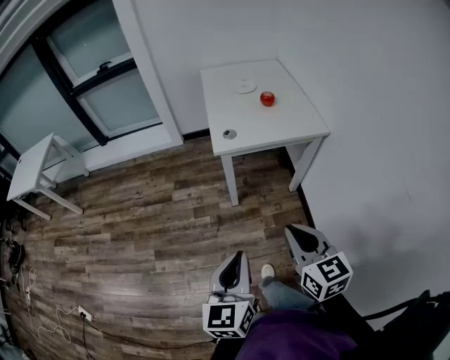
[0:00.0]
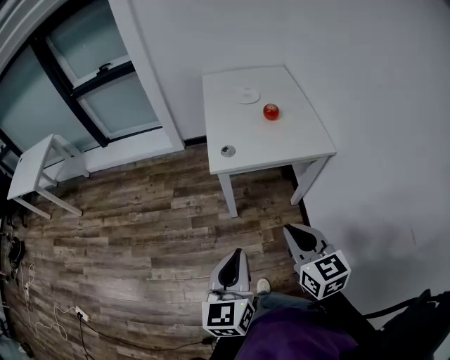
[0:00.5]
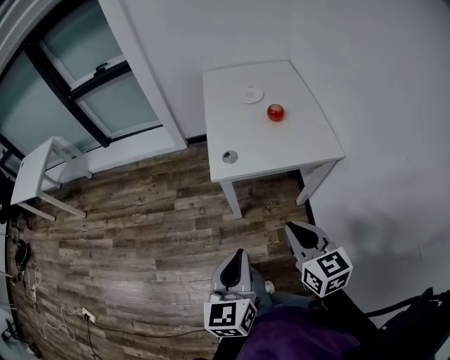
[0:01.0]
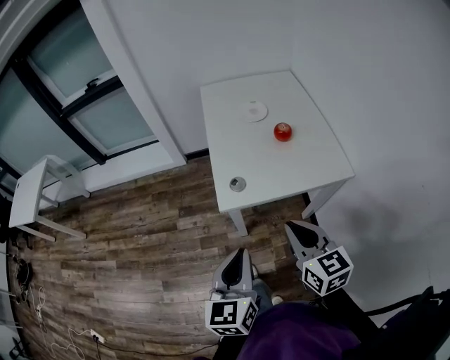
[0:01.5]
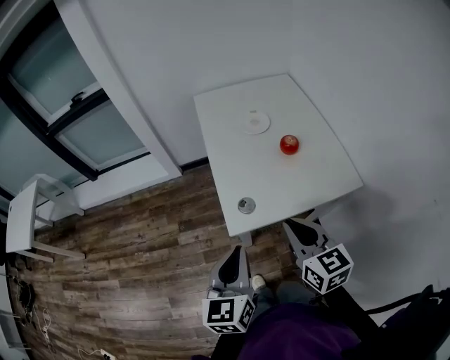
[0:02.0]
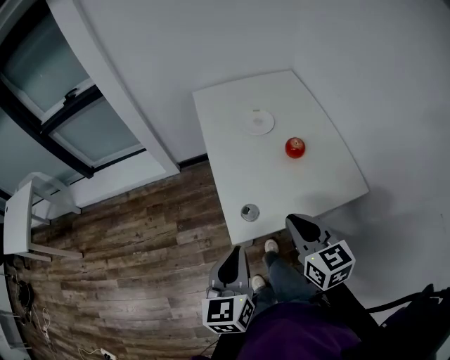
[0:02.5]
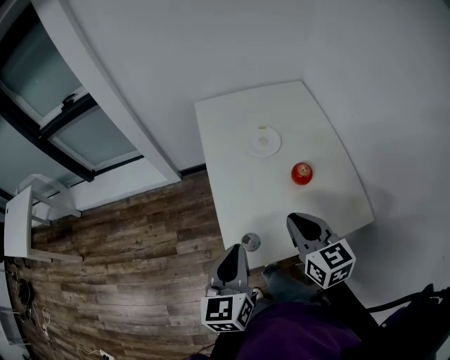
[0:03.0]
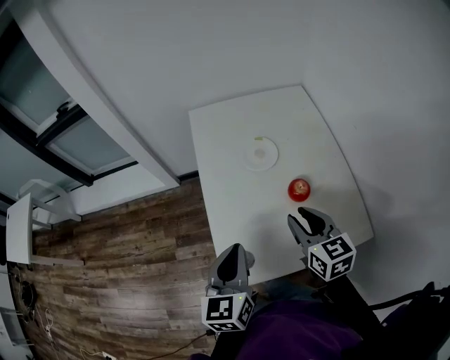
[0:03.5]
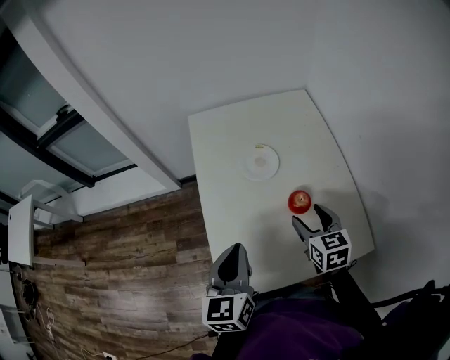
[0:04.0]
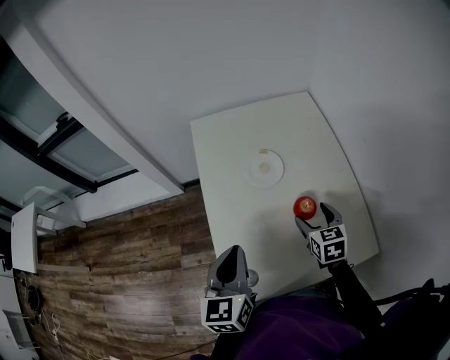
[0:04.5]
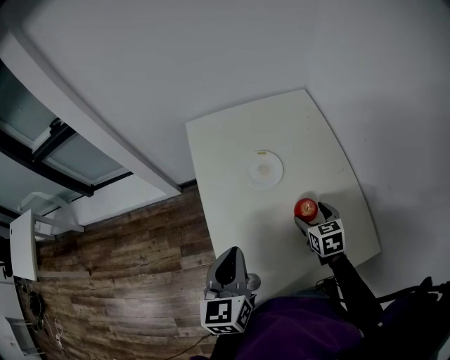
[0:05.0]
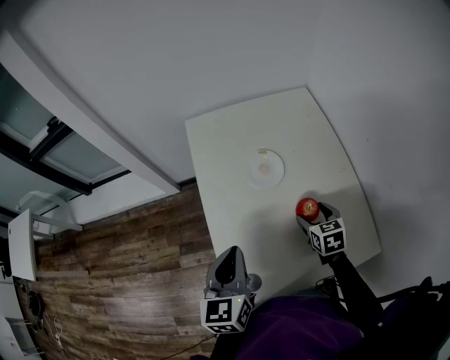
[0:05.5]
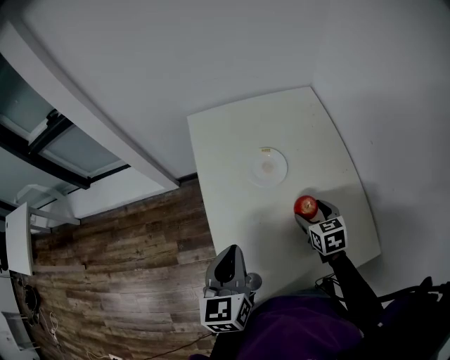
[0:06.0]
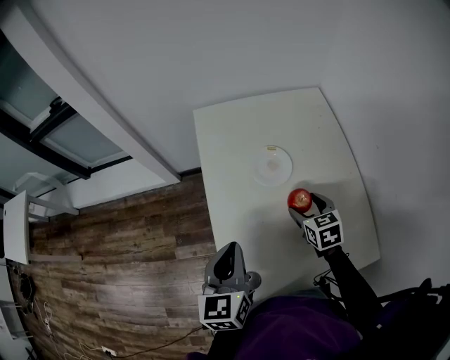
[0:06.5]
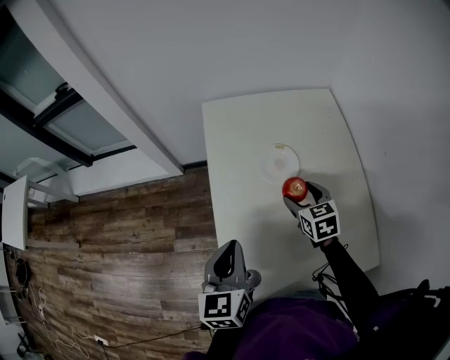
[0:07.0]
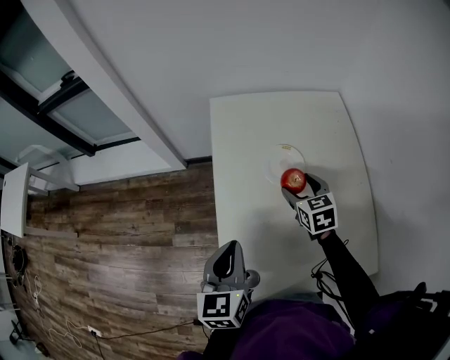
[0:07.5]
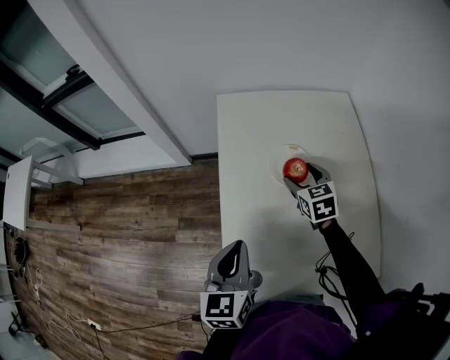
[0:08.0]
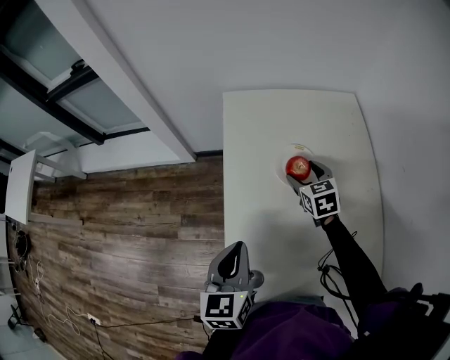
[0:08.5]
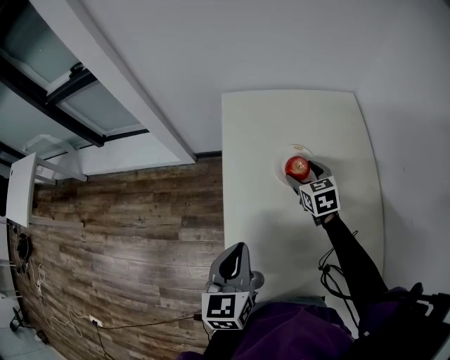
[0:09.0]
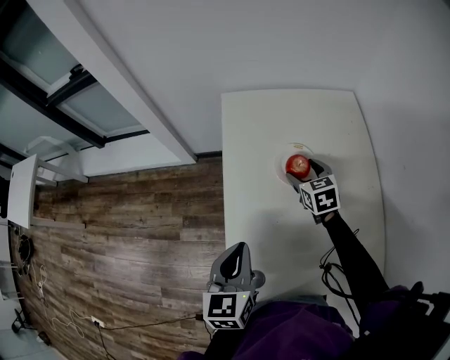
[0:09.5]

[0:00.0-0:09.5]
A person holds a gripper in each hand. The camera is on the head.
0:00.0 to 0:02.0: Both grippers travel together forward, roughly 40 cm.
0:02.0 to 0:04.0: The right gripper is displaced forward and to the right by roughly 30 cm, and opens up; the left gripper is displaced forward by some 25 cm.
0:04.0 to 0:05.5: The right gripper shifts roughly 10 cm downward; the left gripper ends up about 5 cm from where it was.
0:05.5 to 0:07.5: The right gripper moves forward and to the left, approximately 15 cm.
0:07.5 to 0:09.5: The right gripper goes approximately 5 cm forward.

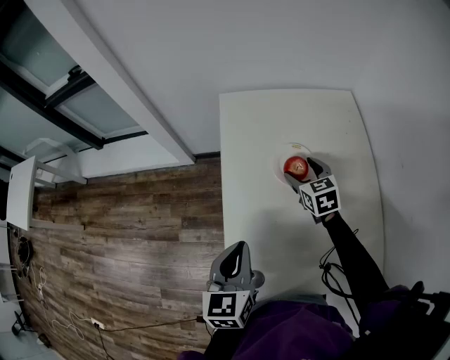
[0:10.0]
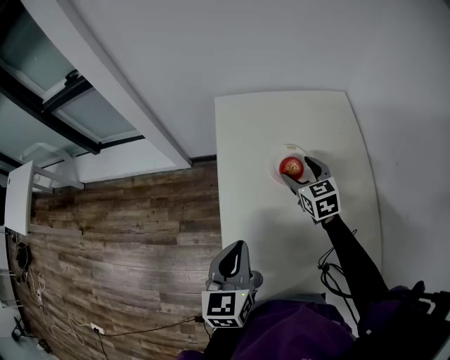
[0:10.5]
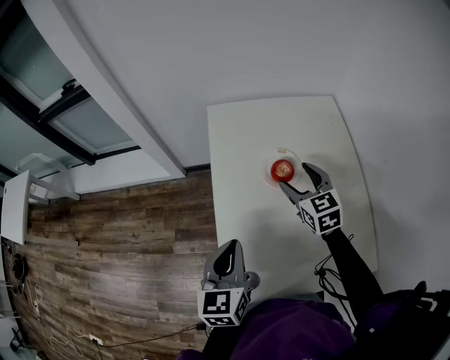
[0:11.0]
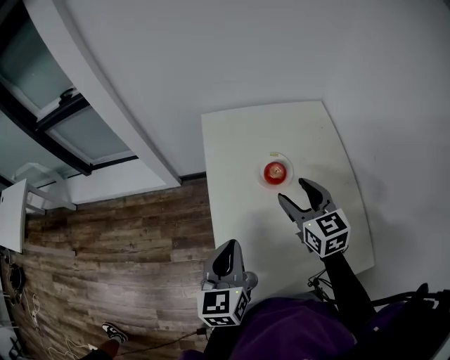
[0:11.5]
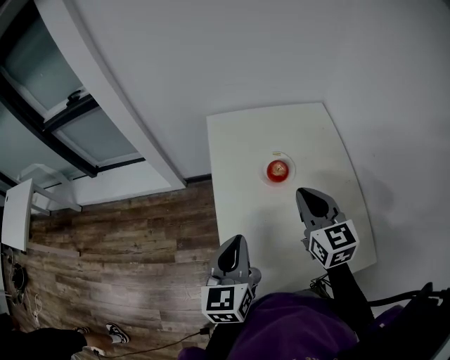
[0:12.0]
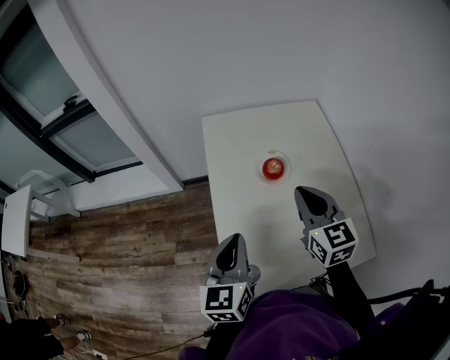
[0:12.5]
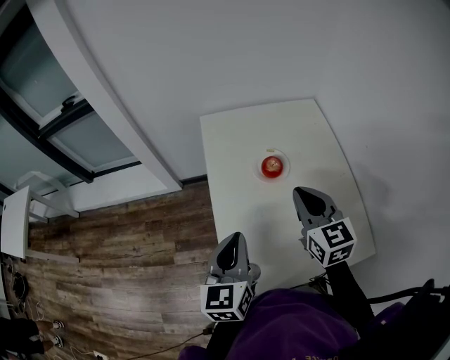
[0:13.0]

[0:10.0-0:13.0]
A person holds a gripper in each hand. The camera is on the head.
0:10.0 to 0:11.5: The right gripper heads upward and backward, covering about 20 cm.
0:11.5 to 0:13.0: The right gripper heads backward, covering some 5 cm, and closes its fingers.

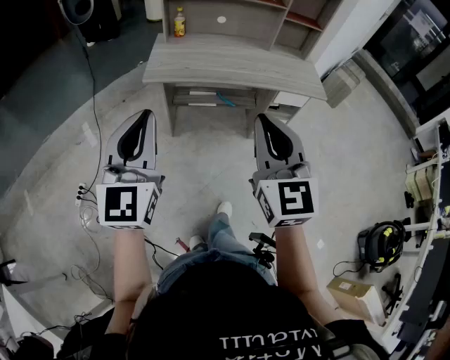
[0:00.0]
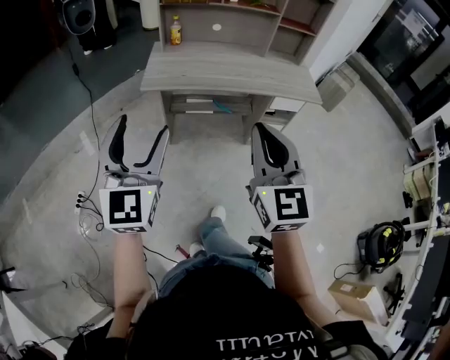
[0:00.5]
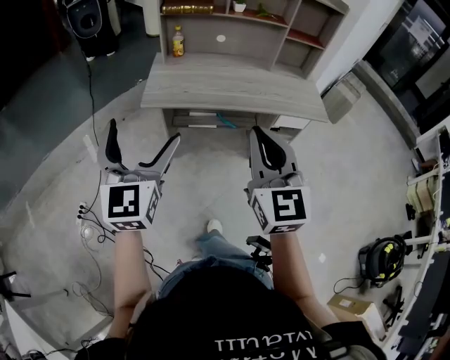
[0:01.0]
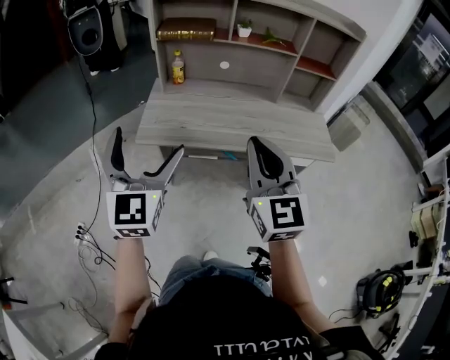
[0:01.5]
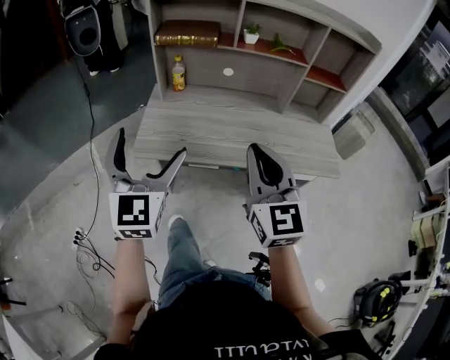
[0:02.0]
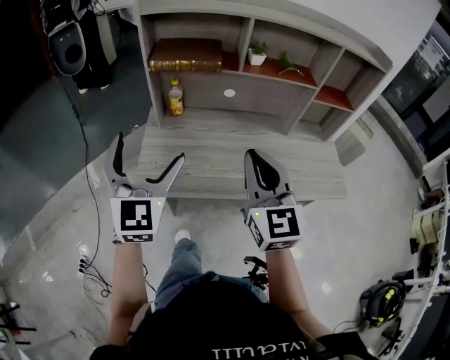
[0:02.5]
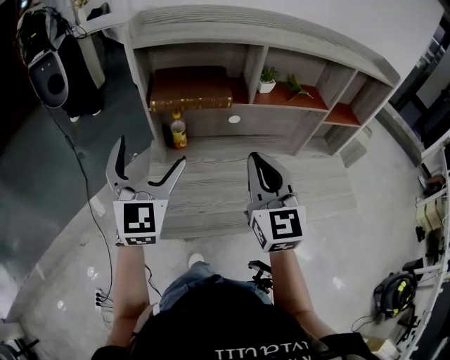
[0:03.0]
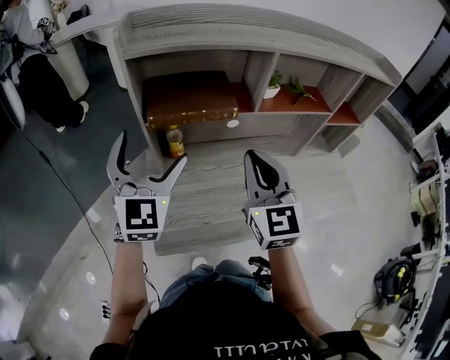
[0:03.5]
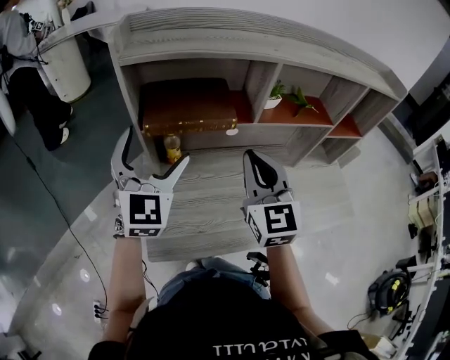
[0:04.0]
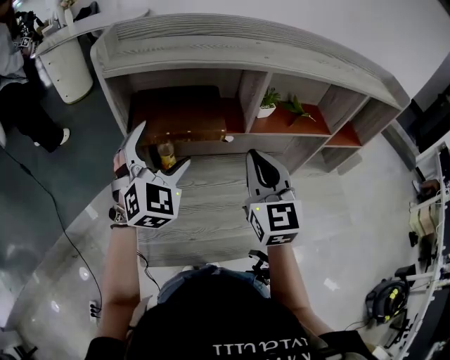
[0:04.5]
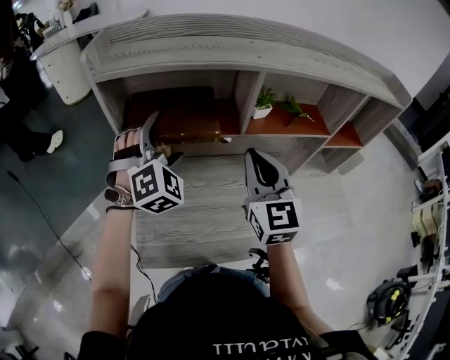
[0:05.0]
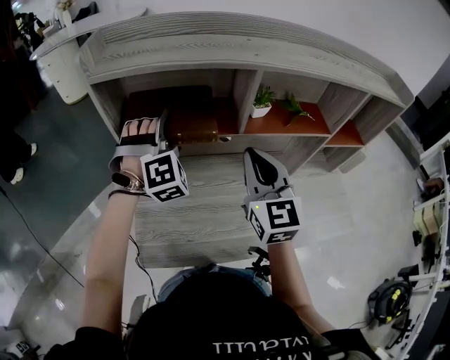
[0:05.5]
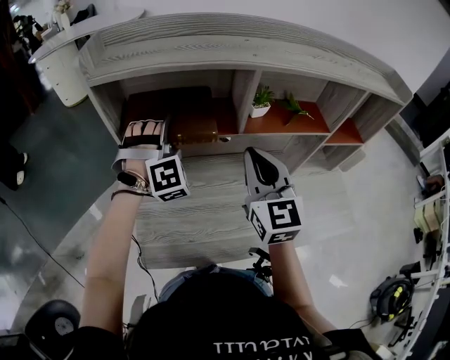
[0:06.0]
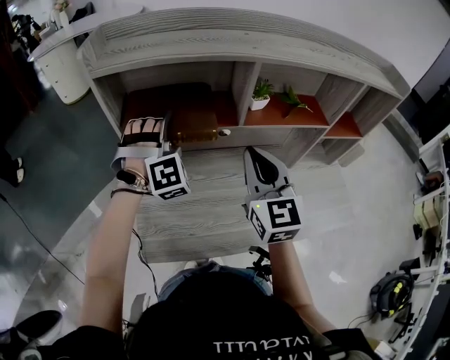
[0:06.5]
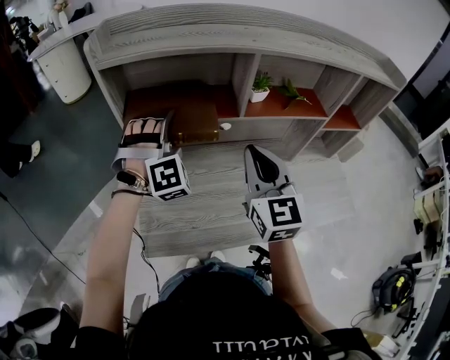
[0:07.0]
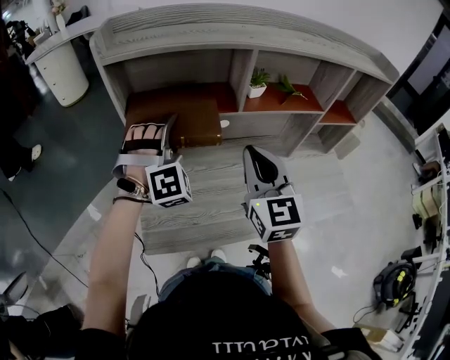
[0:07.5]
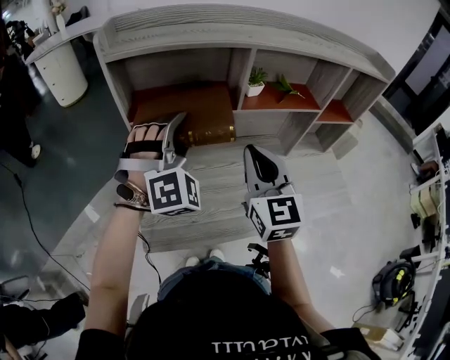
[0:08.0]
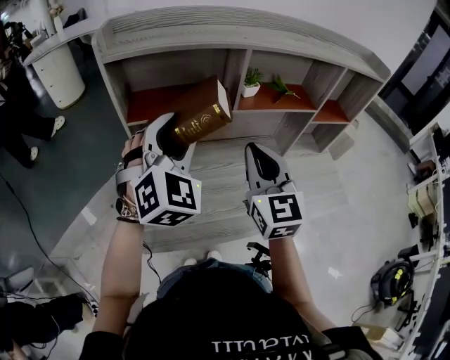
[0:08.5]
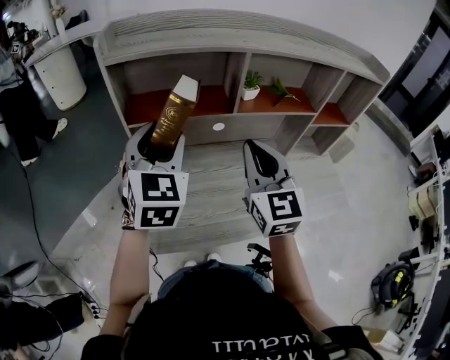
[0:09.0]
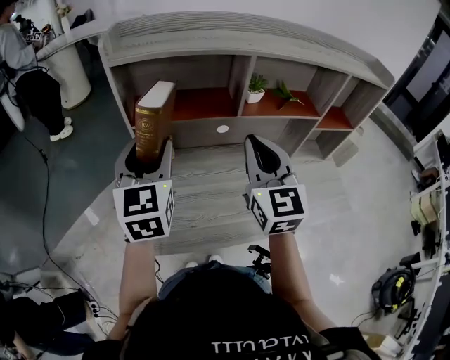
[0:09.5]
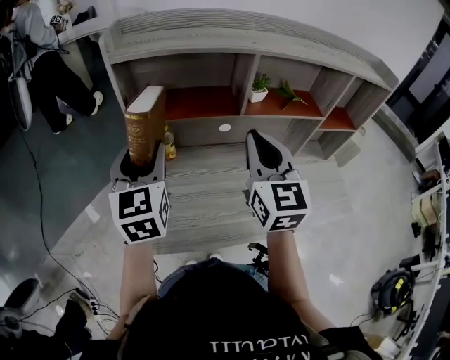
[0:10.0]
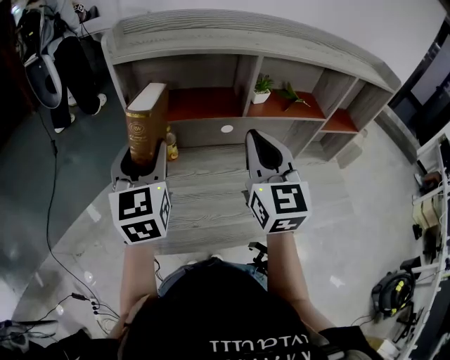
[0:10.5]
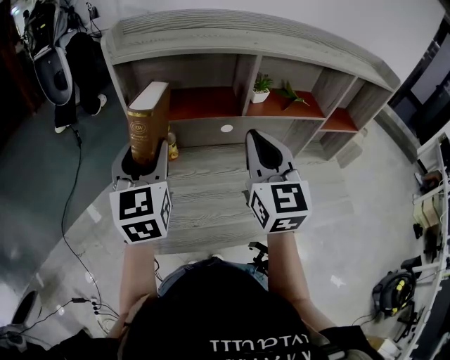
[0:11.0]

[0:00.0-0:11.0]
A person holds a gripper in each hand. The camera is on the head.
0:00.0 to 0:02.0: Both grippers move forward, about 35 cm. The left gripper opens.
0:02.0 to 0:03.5: The two grippers go roughly 35 cm forward.
0:03.5 to 0:05.5: The right gripper is displaced forward and to the right by some 10 cm. Meanwhile the left gripper moves forward, to the right and downward, roughly 20 cm, and rotates around the line of its fingers by some 50 degrees, clockwise from behind.
0:05.5 to 0:07.5: Both grippers move backward, some 5 cm. The left gripper closes its fingers.
0:07.5 to 0:09.0: The left gripper travels upward and backward by roughly 10 cm, and rotates around the line of its fingers by about 60 degrees, counterclockwise from behind.
0:09.0 to 0:11.0: The left gripper goes approximately 5 cm to the left.

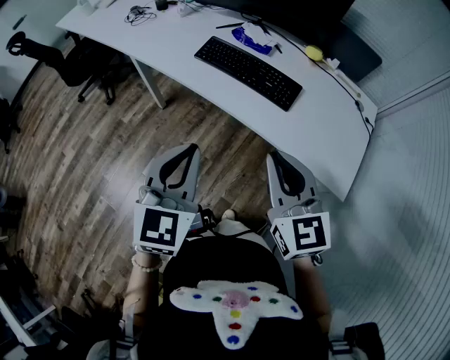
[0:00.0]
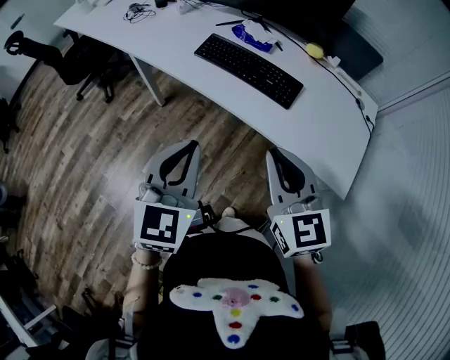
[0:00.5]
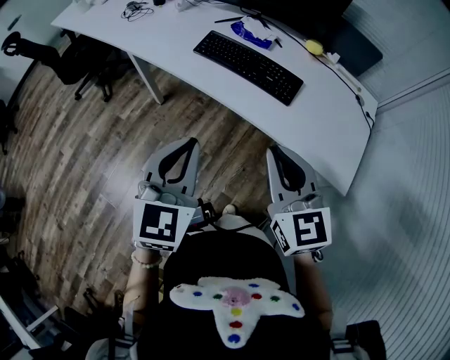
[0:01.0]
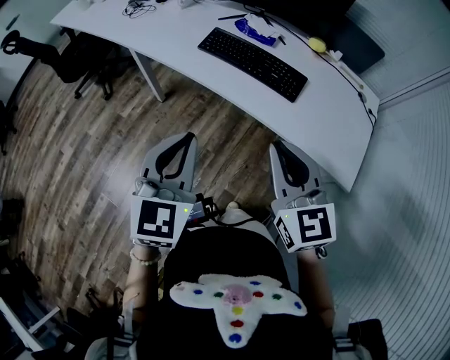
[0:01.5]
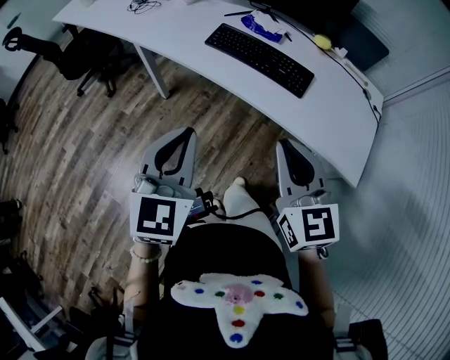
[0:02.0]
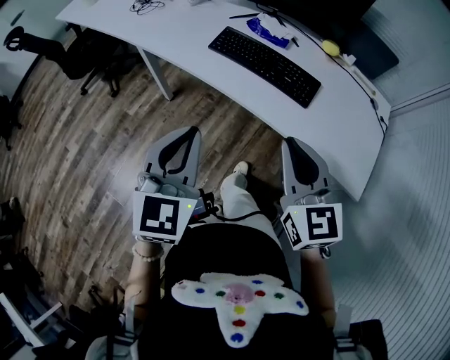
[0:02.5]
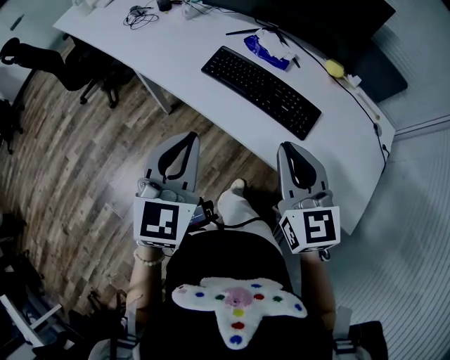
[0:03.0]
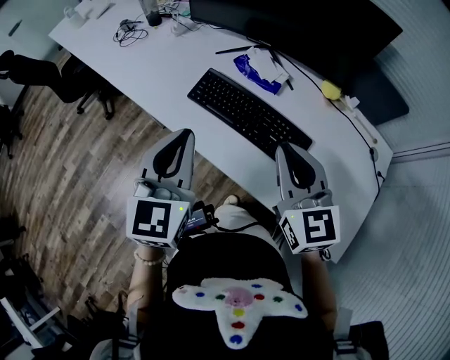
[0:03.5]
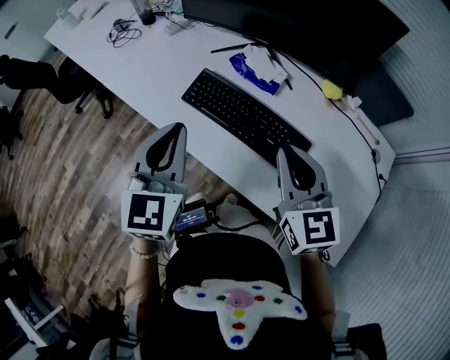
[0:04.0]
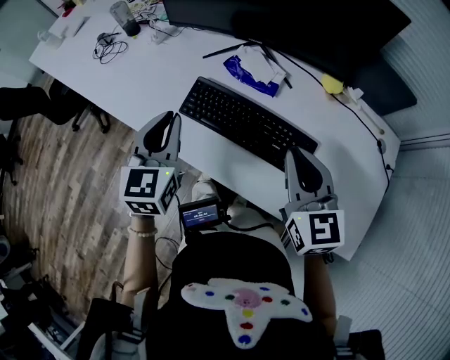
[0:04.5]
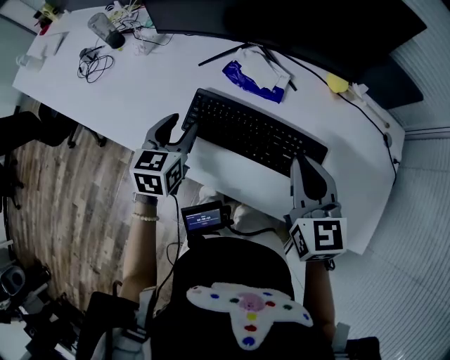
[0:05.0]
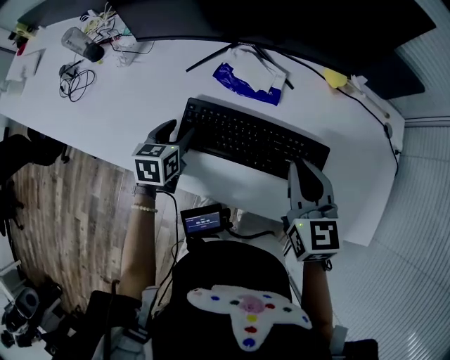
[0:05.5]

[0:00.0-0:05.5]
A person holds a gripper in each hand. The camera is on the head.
0:00.0 to 0:02.0: The left gripper heads to the left, covering approximately 5 cm.
0:02.0 to 0:03.5: Both grippers move forward, roughly 25 cm.
0:03.5 to 0:05.5: The right gripper shifts by approximately 15 cm, and swivels roughly 30 degrees. The left gripper heads downward, covering about 25 cm, angles its fingers downward, by some 30 degrees, and opens.
